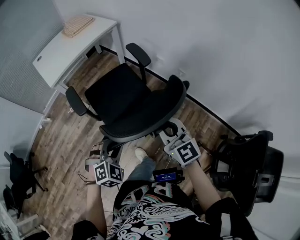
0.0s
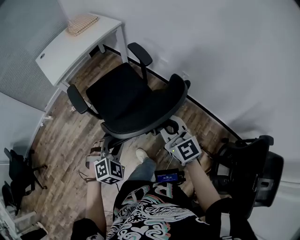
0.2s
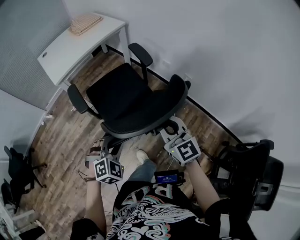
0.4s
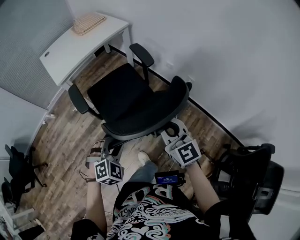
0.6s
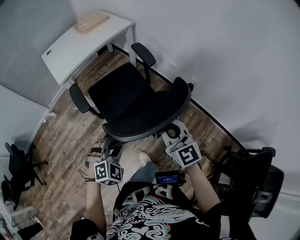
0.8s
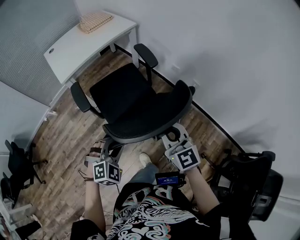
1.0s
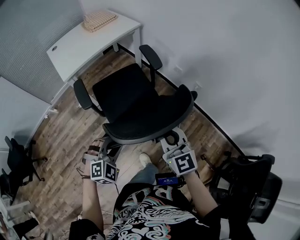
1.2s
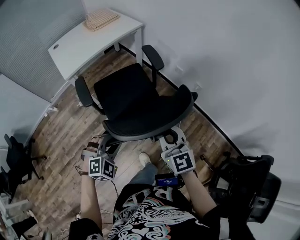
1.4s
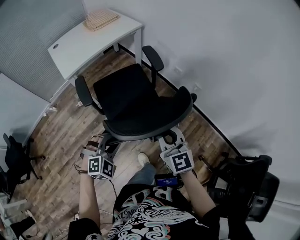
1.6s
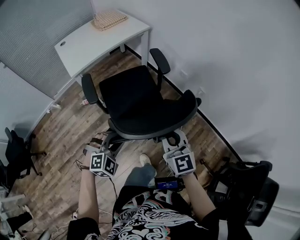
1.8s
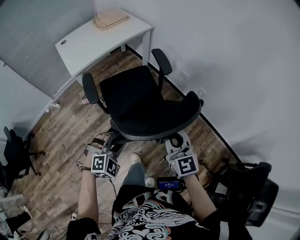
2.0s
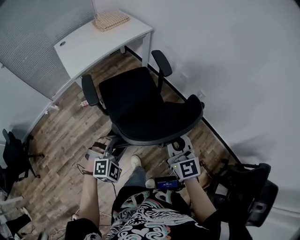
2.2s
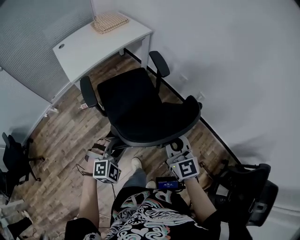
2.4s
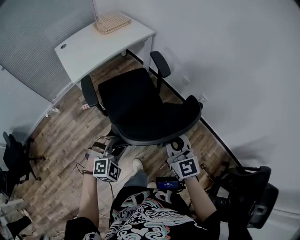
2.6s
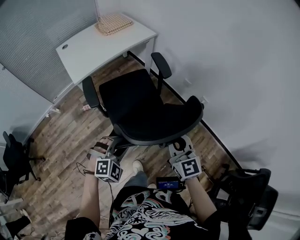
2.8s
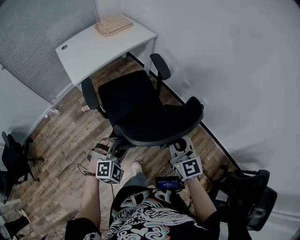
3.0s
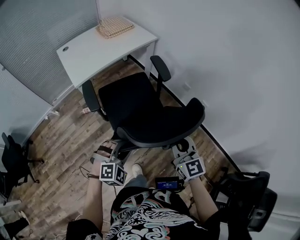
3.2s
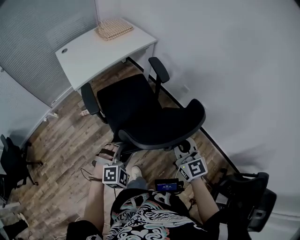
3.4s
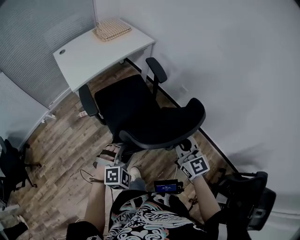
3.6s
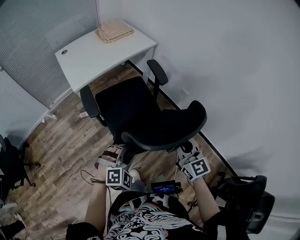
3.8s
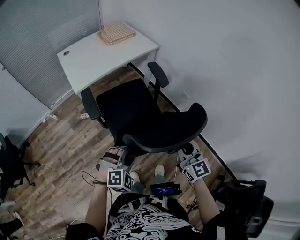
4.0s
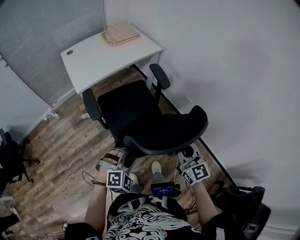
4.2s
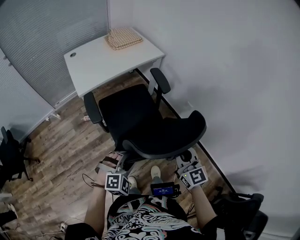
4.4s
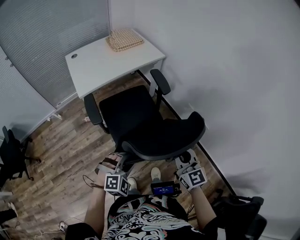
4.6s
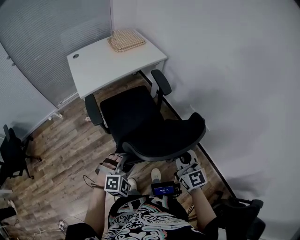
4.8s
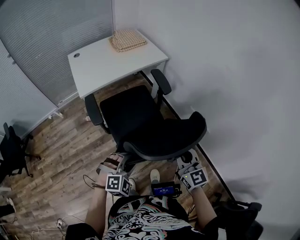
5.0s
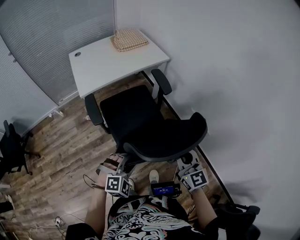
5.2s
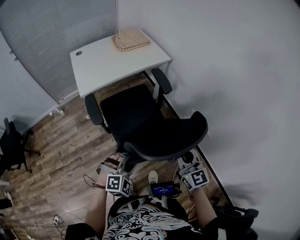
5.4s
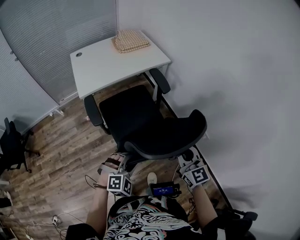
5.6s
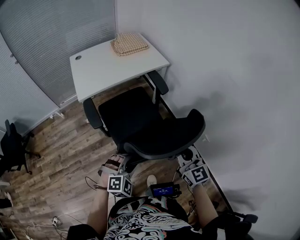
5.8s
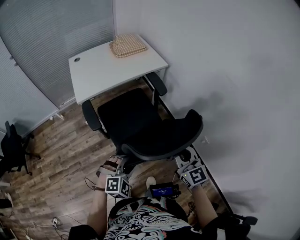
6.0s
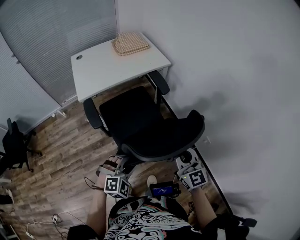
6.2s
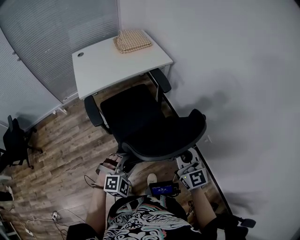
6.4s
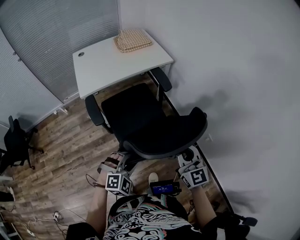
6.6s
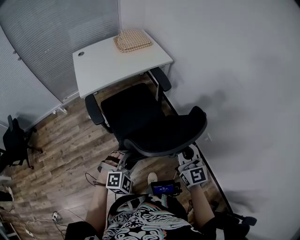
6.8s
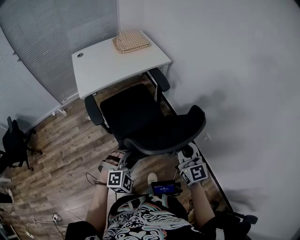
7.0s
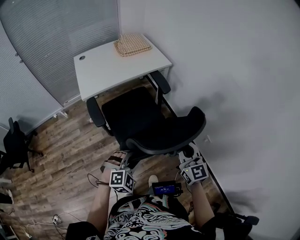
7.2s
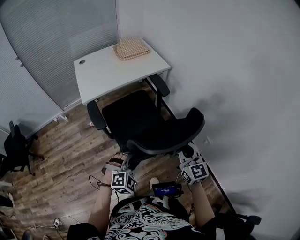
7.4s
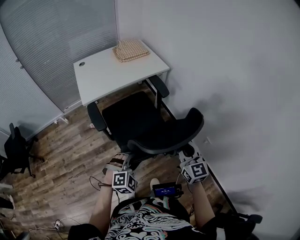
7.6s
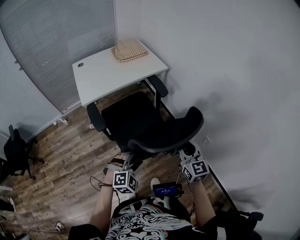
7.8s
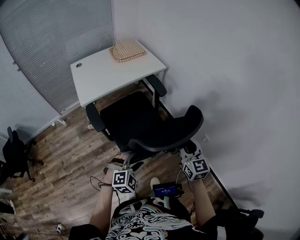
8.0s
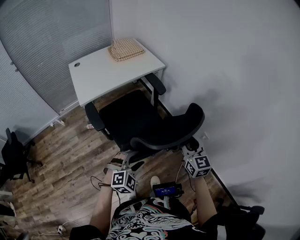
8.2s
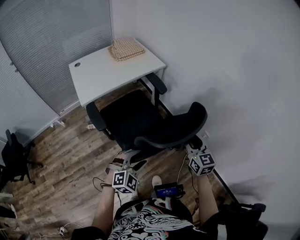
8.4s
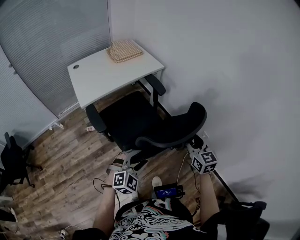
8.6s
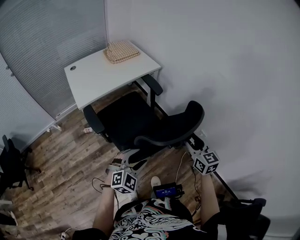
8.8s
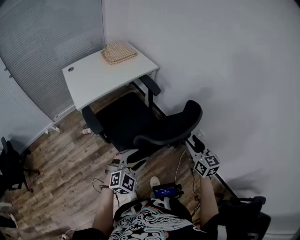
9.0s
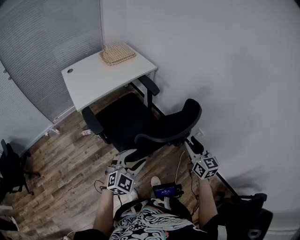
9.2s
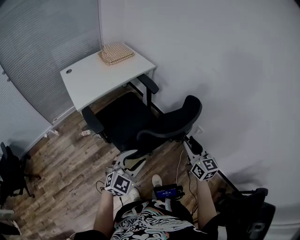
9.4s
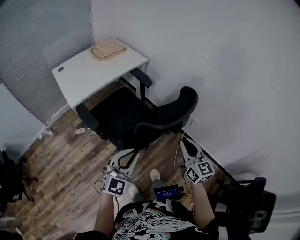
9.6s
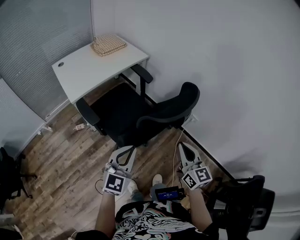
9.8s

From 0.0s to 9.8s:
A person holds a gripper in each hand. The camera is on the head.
From 0.0s to 1.4s: The grippers both shift to the left and forward by roughly 10 cm.
From 1.4s to 2.8s: The left gripper moves approximately 5 cm. Meanwhile the right gripper moves approximately 5 cm.
From 2.8s to 4.2s: The right gripper moves roughly 5 cm.
From 4.2s to 5.6s: Both grippers move forward, some 5 cm.
From 5.6s to 7.0s: The grippers make only small movements.
From 7.0s to 8.4s: The right gripper opens. The left gripper opens.
From 8.4s to 9.8s: The left gripper shifts about 15 cm upward, backward and to the left, turns by approximately 40 degrees, and closes. The right gripper is displaced backward by approximately 15 cm, and closes up.

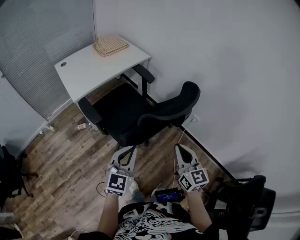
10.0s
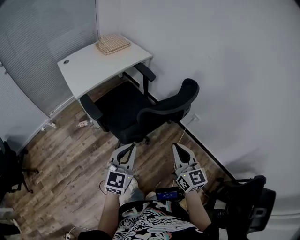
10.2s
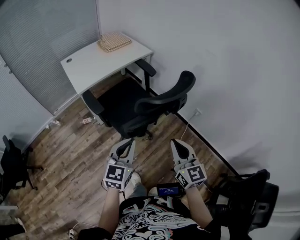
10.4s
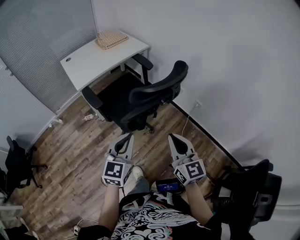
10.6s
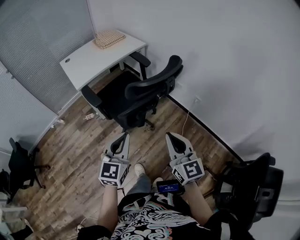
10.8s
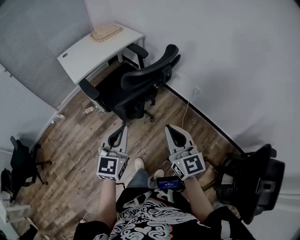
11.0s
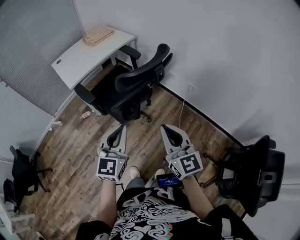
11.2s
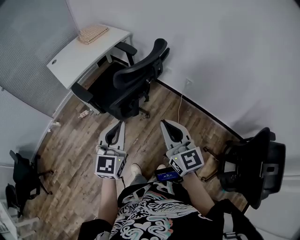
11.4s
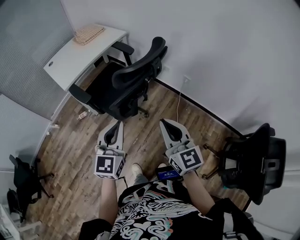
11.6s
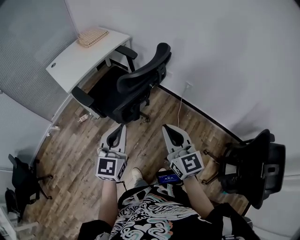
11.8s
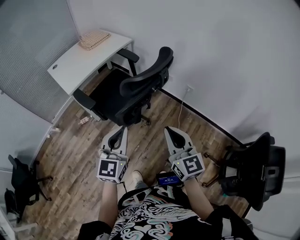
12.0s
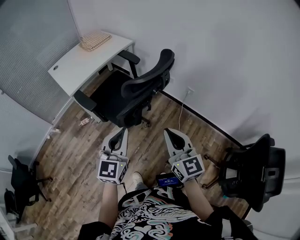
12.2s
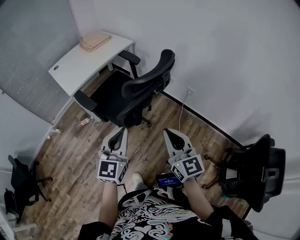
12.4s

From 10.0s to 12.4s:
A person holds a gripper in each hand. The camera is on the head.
From 10.0s to 11.2s: Both grippers move backward and upward, some 15 cm.
From 11.2s to 12.4s: The grippers stay close to where they were, moving slightly.

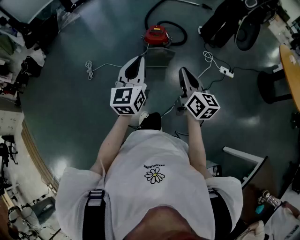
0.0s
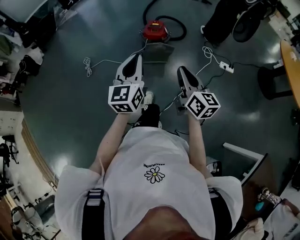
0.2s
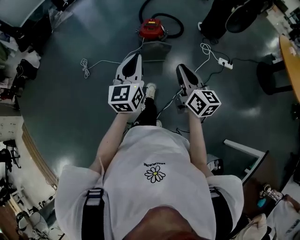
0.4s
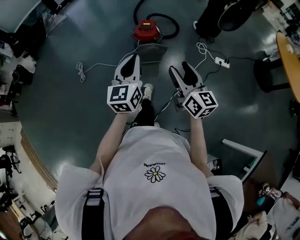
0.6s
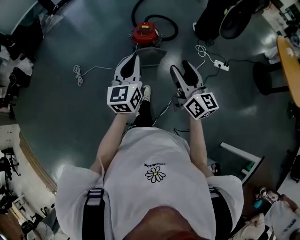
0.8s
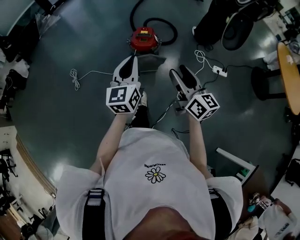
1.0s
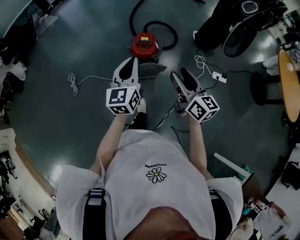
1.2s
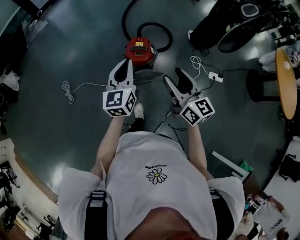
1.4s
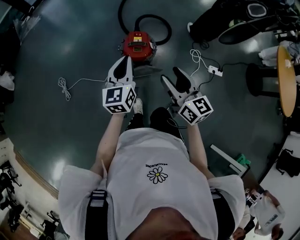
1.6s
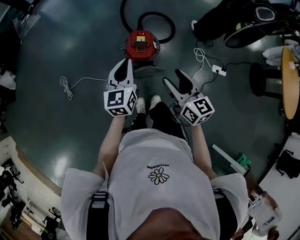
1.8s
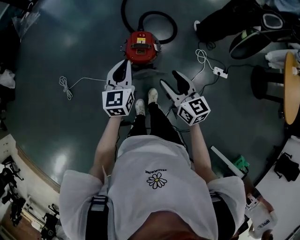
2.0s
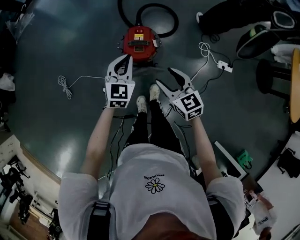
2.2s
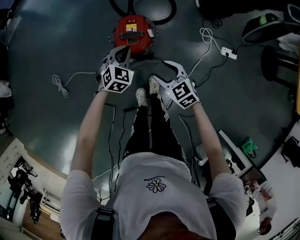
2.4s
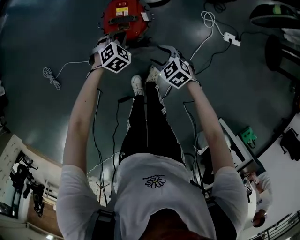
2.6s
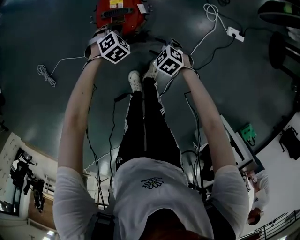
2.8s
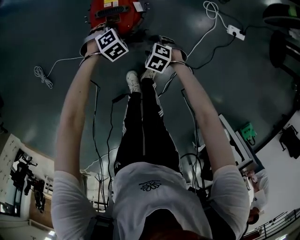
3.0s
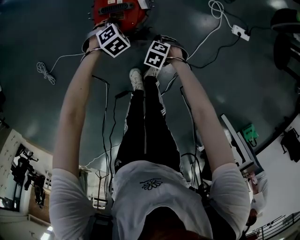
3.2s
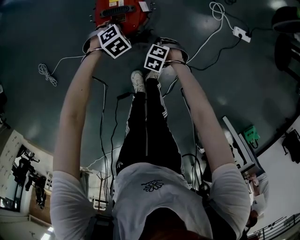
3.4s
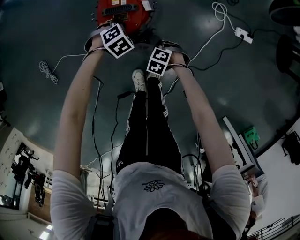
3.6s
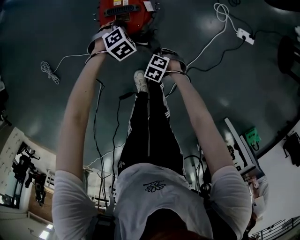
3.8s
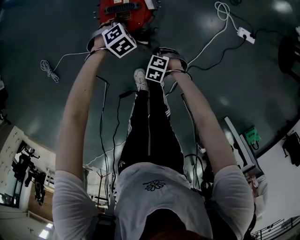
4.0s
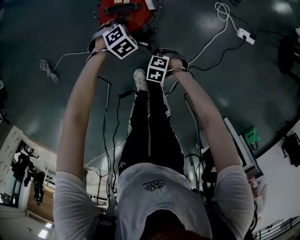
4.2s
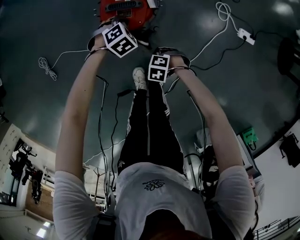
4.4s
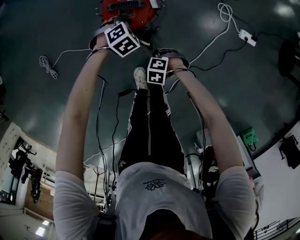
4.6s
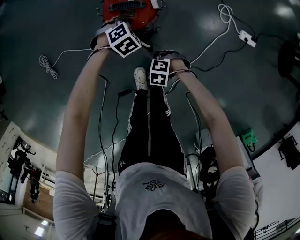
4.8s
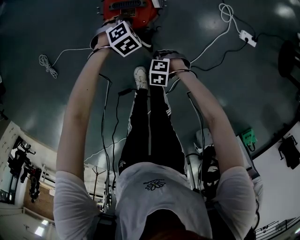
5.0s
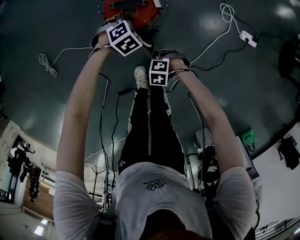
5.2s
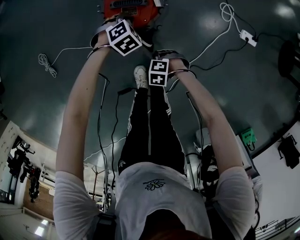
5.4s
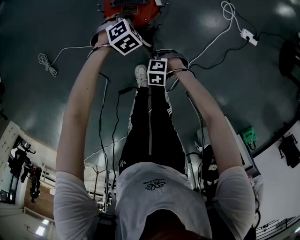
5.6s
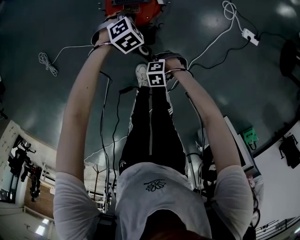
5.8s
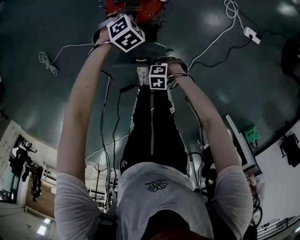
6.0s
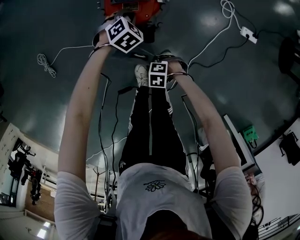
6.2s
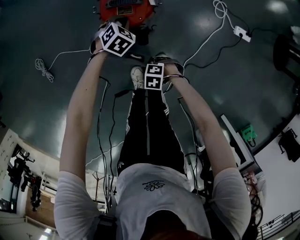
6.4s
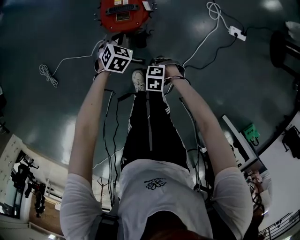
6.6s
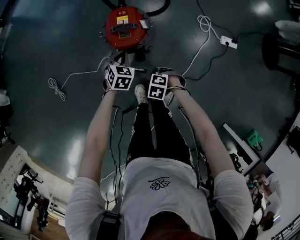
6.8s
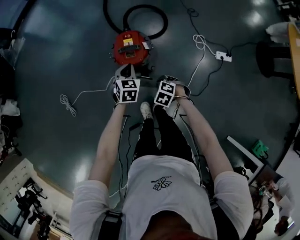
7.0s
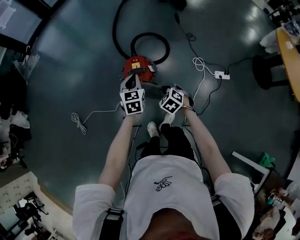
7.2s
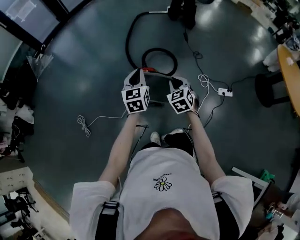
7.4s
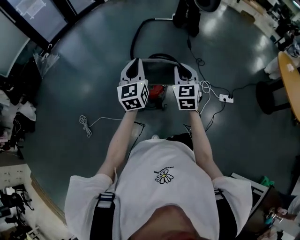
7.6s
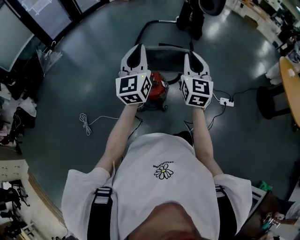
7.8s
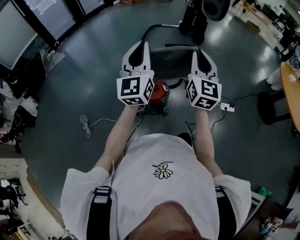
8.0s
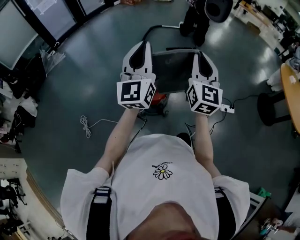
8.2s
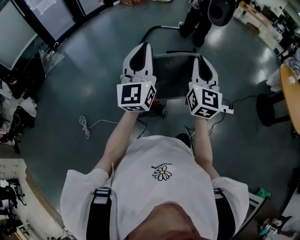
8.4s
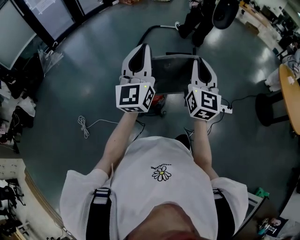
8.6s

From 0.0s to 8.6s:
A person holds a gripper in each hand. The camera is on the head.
From 0.0s to 1.4s: The grippers both shift forward by approximately 35 cm. The right gripper opens up.
From 1.4s to 2.8s: The right gripper is displaced downward by about 50 cm, and tilts its fingers approximately 60 degrees downward. Meanwhile the left gripper is displaced downward and forward by approximately 50 cm, and points its fingers approximately 60 degrees further downward.
From 2.8s to 4.4s: The right gripper changes place by about 10 cm, rotates some 30 degrees, and closes its fingers.
From 4.4s to 5.8s: The right gripper ends up approximately 5 cm from where it was.
From 5.8s to 7.2s: Both grippers travel together upward, roughly 35 cm. The right gripper swivels some 60 degrees; the left gripper angles its fingers upward, by roughly 40 degrees.
From 7.2s to 8.6s: Both grippers move upward, some 40 cm. The right gripper angles its fingers upward, by roughly 70 degrees. Meanwhile the left gripper tips its fingers upward by approximately 50 degrees.

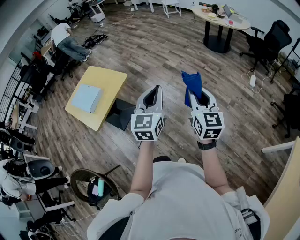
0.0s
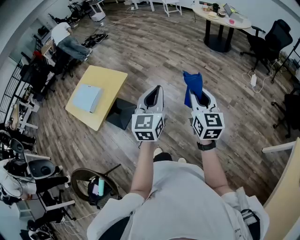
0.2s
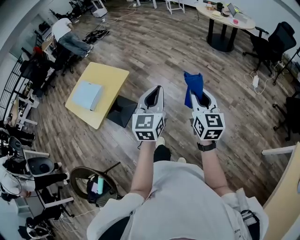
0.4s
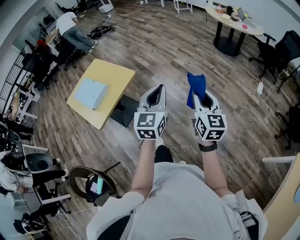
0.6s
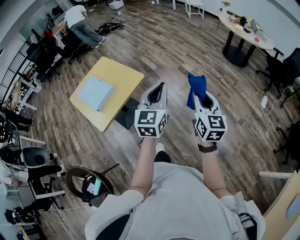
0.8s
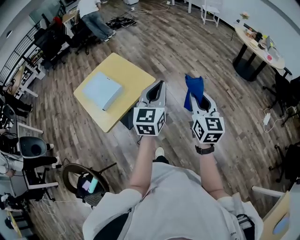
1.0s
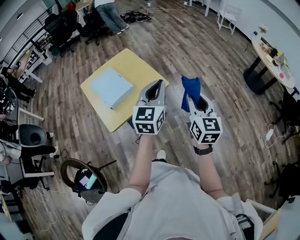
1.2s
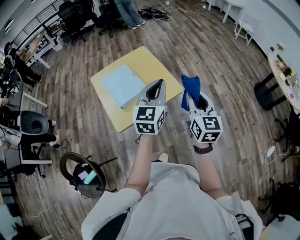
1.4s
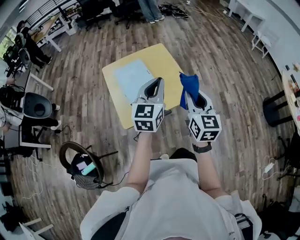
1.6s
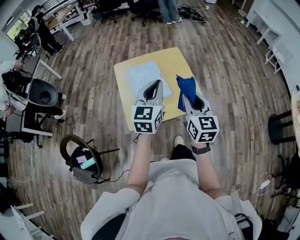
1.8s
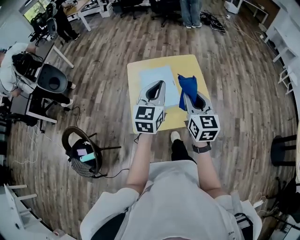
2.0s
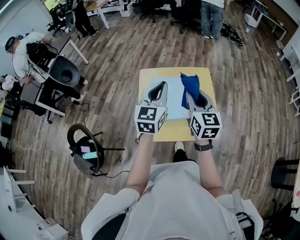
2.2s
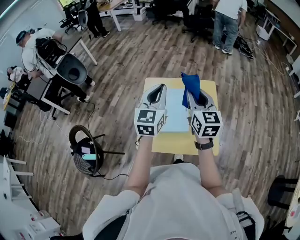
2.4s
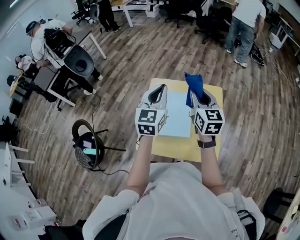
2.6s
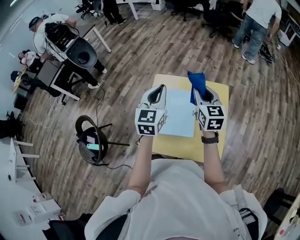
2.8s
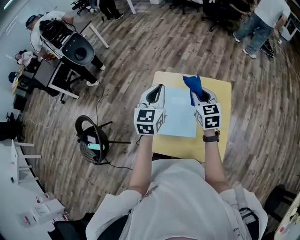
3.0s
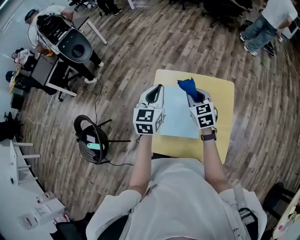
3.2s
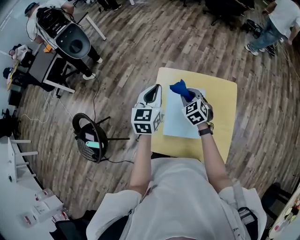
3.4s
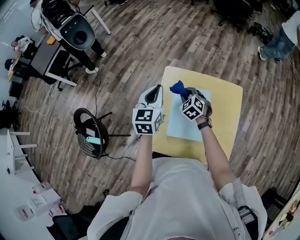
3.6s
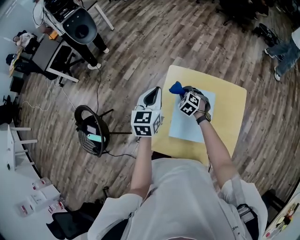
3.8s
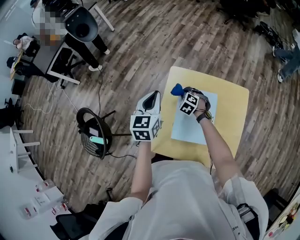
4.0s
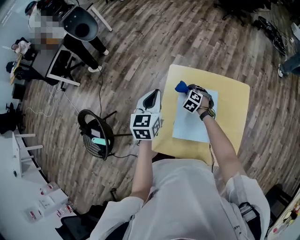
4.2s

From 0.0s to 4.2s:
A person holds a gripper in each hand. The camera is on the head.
From 0.0s to 1.4s: The pair of grippers is taken roughly 50 cm. The left gripper swivels about 30 degrees. The right gripper changes its angle by roughly 30 degrees.
From 1.4s to 2.8s: The two grippers travel together, roughly 40 cm. The right gripper turns by roughly 50 degrees, while the left gripper changes its angle by roughly 50 degrees.
From 2.8s to 4.2s: The left gripper shifts about 20 cm to the left, downward and forward, while the right gripper heads downward, forward and to the left, covering roughly 40 cm, and angles its fingers downward, by about 50 degrees.
